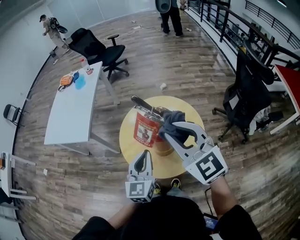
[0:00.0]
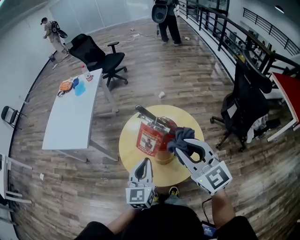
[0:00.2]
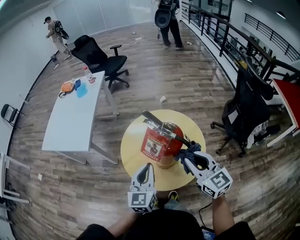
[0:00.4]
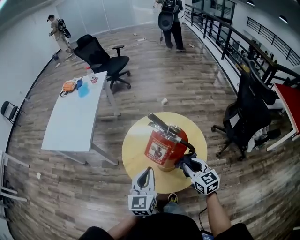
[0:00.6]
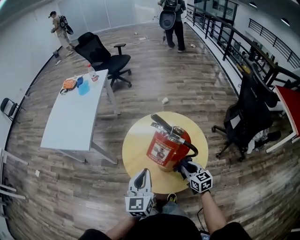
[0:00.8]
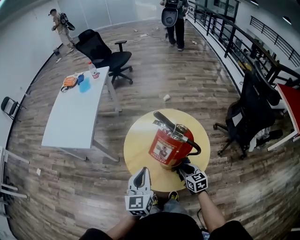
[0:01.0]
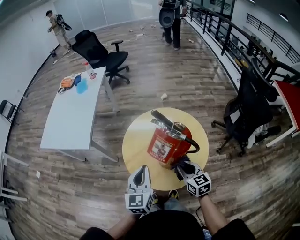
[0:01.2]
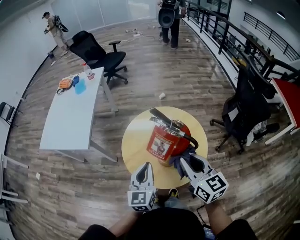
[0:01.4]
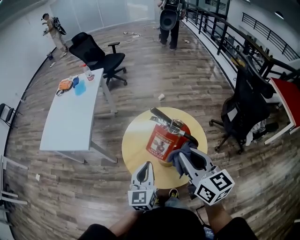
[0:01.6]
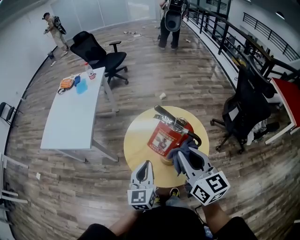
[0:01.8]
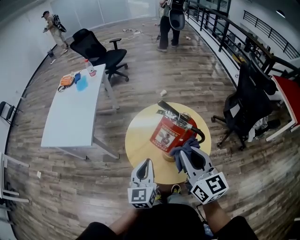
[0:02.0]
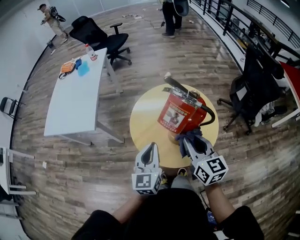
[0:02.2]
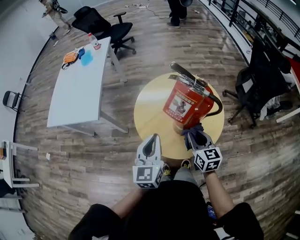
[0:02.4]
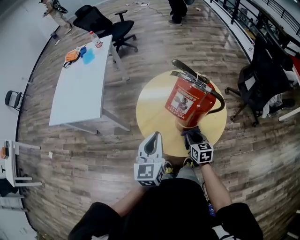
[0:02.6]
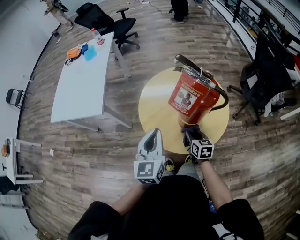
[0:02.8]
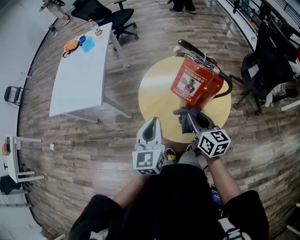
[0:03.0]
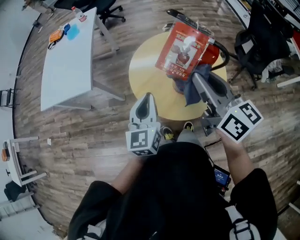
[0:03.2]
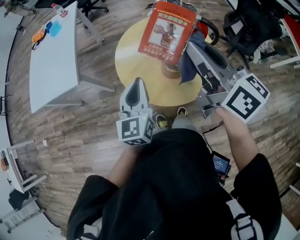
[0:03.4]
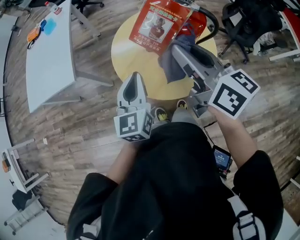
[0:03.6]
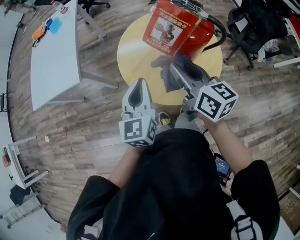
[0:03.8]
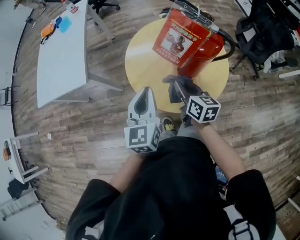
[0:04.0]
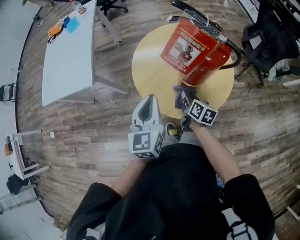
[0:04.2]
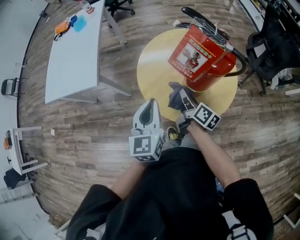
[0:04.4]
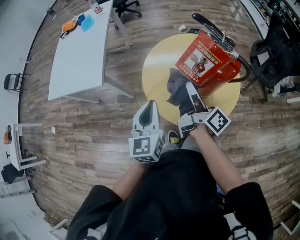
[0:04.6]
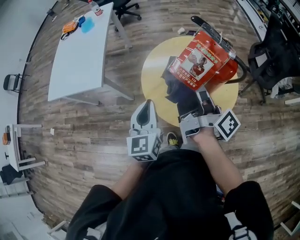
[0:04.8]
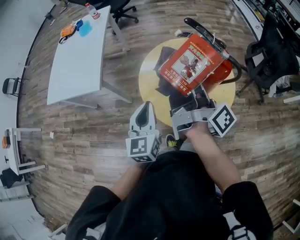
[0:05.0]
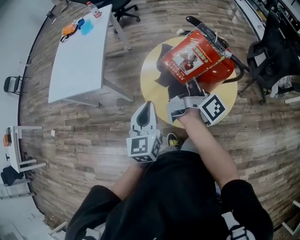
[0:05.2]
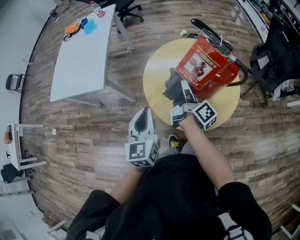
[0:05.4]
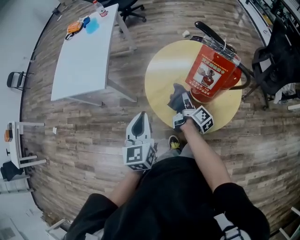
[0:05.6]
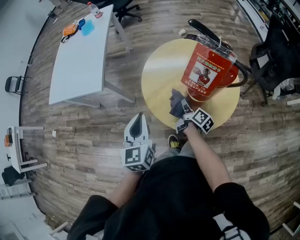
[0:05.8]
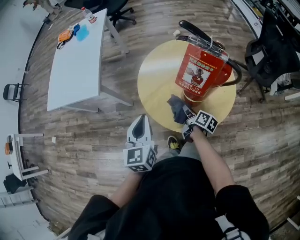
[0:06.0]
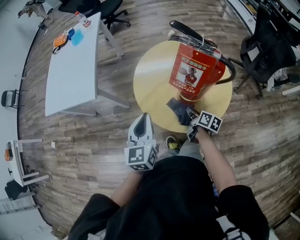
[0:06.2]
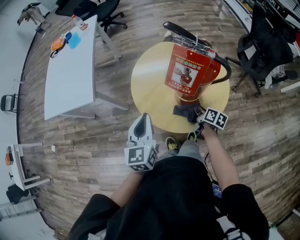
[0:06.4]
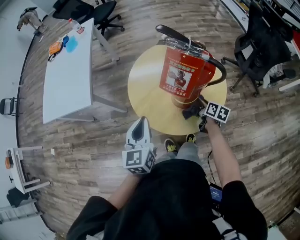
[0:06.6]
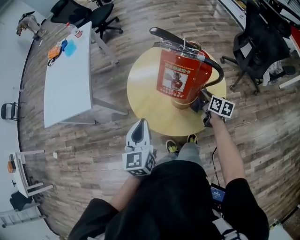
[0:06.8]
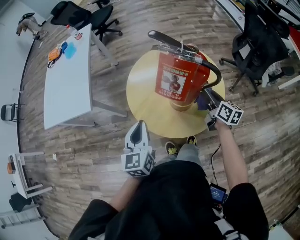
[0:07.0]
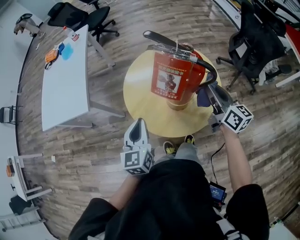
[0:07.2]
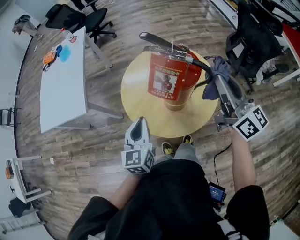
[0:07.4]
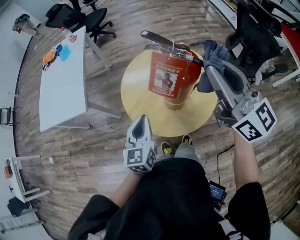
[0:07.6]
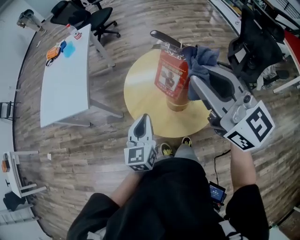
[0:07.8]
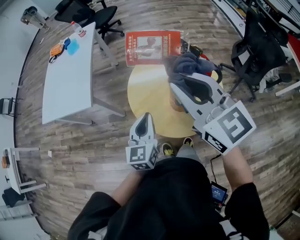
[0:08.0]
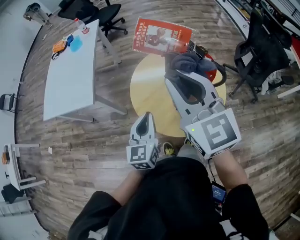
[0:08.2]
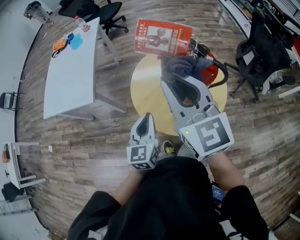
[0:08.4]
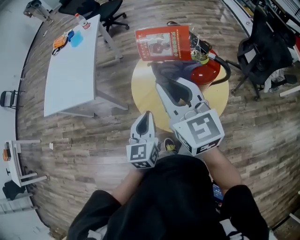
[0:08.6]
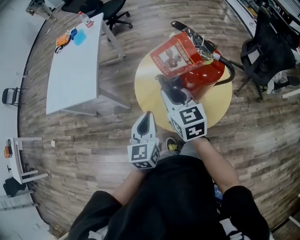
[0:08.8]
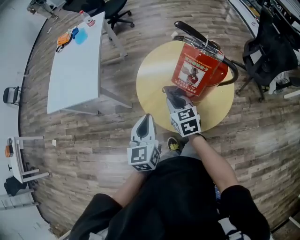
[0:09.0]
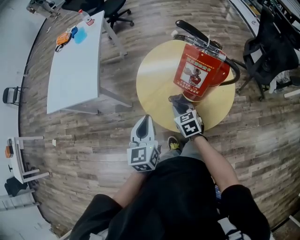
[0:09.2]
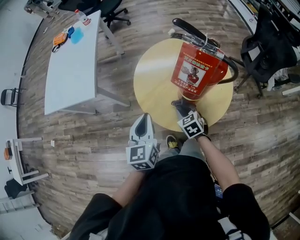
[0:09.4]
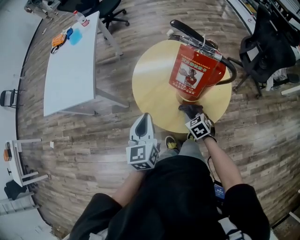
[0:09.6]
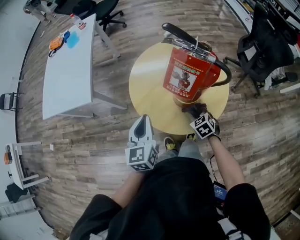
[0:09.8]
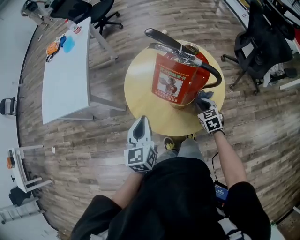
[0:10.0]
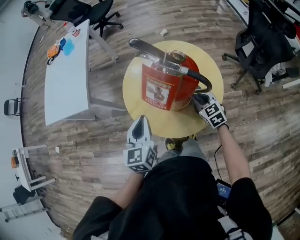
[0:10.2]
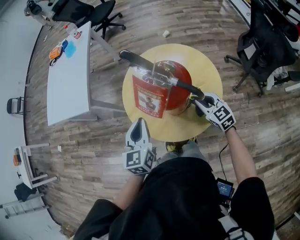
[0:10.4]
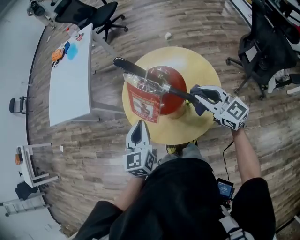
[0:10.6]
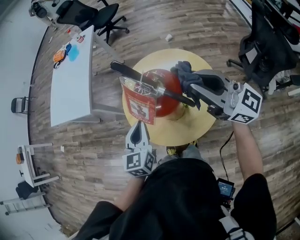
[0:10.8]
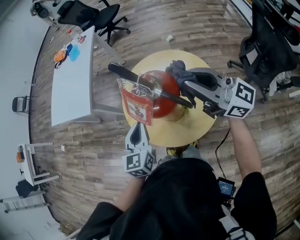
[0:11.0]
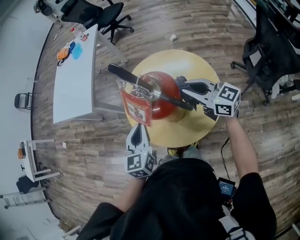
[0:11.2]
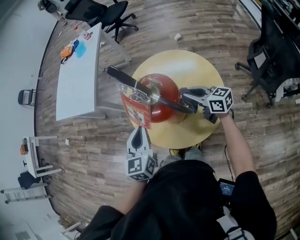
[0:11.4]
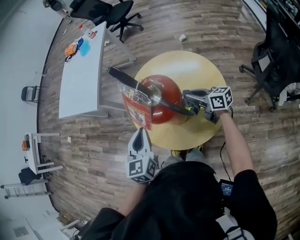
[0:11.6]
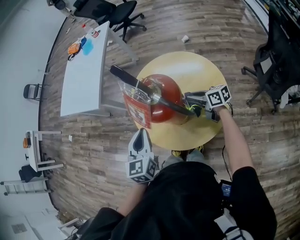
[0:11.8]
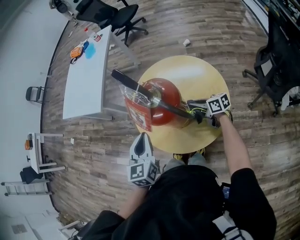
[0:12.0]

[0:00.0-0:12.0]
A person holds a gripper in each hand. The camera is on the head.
0:00.0 to 0:01.6: The right gripper moves about 35 cm downward and comes back, and turns by about 40 degrees.
0:01.6 to 0:03.0: The left gripper is displaced to the left by some 5 cm. The right gripper moves downward, about 20 cm.
0:03.0 to 0:04.4: The right gripper goes up and down, about 35 cm each way, reversing 2 times, and turns by roughly 40 degrees.
0:04.4 to 0:06.0: The right gripper moves some 25 cm upward and comes back. Meanwhile the left gripper heads to the left, covering roughly 5 cm.
0:06.0 to 0:07.6: The right gripper heads upward, covering some 50 cm, and rolls counterclockwise, seen from behind, by approximately 60 degrees, while the left gripper is displaced to the right by approximately 10 cm.
0:07.6 to 0:09.0: The right gripper travels downward and to the left by about 35 cm, and angles its fingers downward, by some 40 degrees. The left gripper goes some 5 cm to the left.
0:09.0 to 0:10.4: The left gripper is displaced to the right by roughly 10 cm; the right gripper goes about 25 cm to the right.
0:10.4 to 0:12.0: The right gripper heads forward, covering roughly 5 cm, goes upward and returns, approximately 30 cm each way, and turns by approximately 50 degrees.

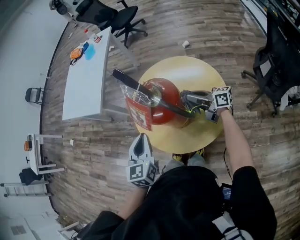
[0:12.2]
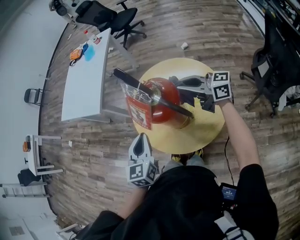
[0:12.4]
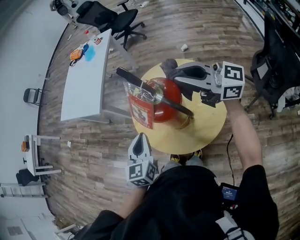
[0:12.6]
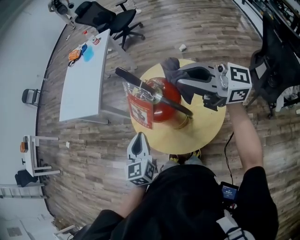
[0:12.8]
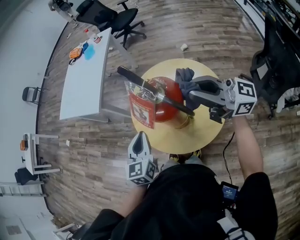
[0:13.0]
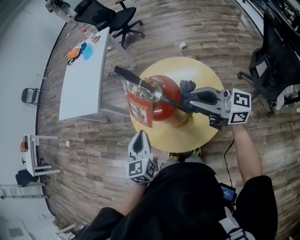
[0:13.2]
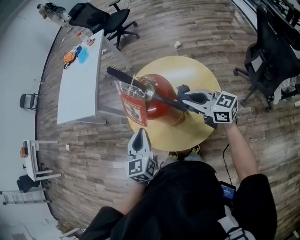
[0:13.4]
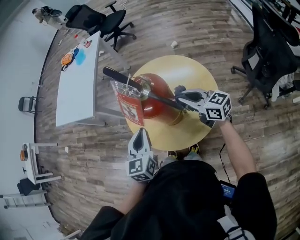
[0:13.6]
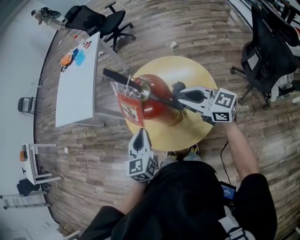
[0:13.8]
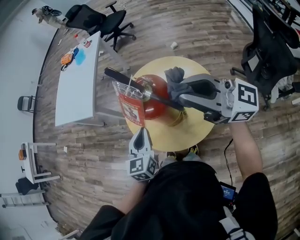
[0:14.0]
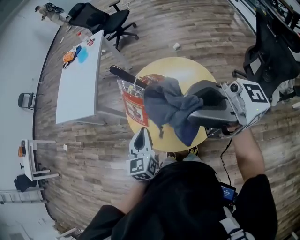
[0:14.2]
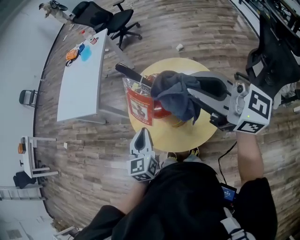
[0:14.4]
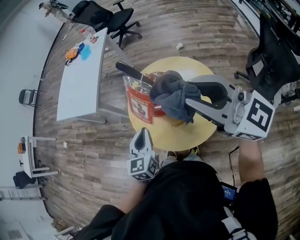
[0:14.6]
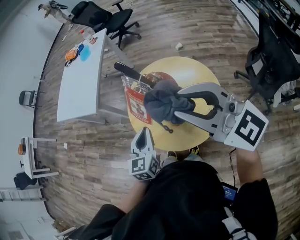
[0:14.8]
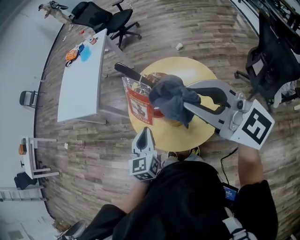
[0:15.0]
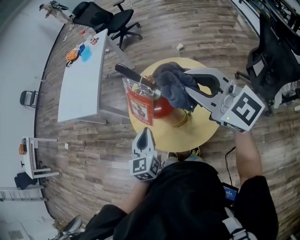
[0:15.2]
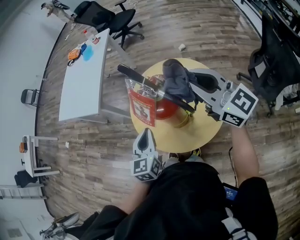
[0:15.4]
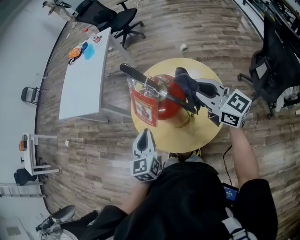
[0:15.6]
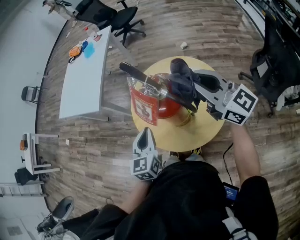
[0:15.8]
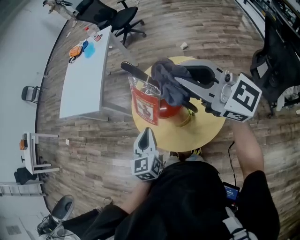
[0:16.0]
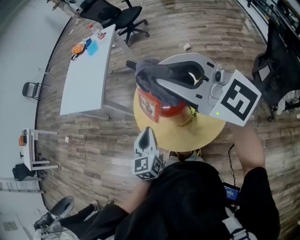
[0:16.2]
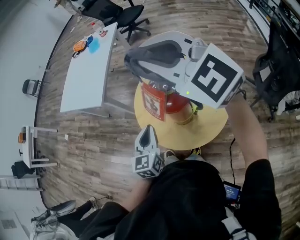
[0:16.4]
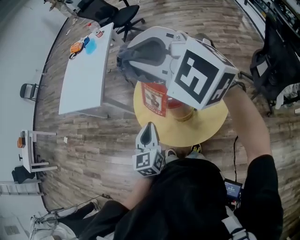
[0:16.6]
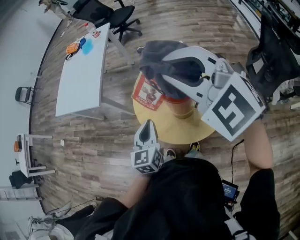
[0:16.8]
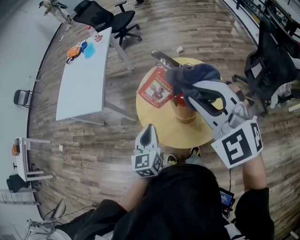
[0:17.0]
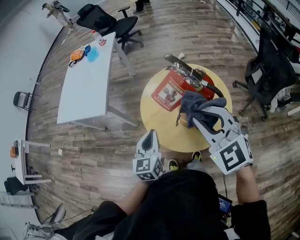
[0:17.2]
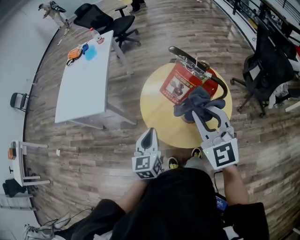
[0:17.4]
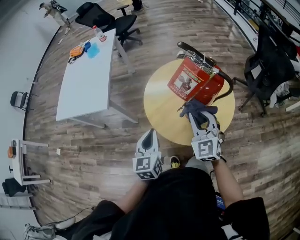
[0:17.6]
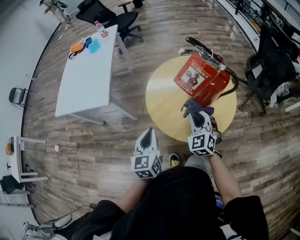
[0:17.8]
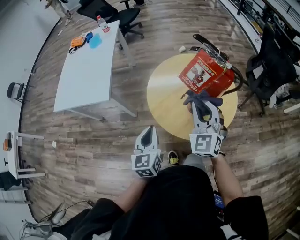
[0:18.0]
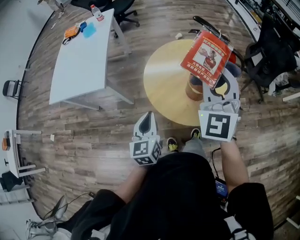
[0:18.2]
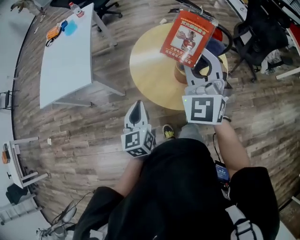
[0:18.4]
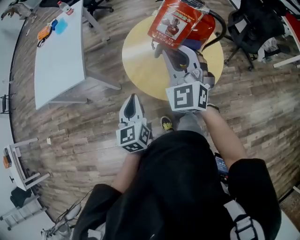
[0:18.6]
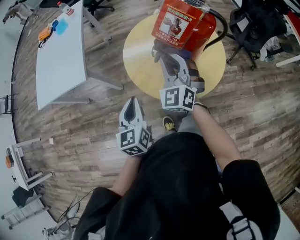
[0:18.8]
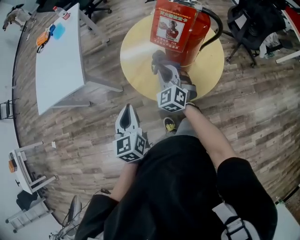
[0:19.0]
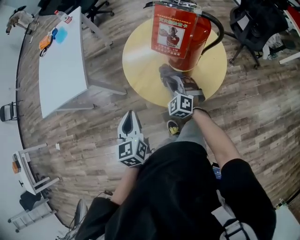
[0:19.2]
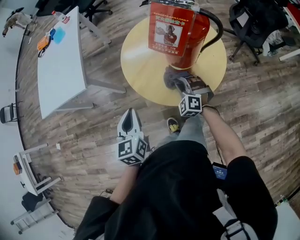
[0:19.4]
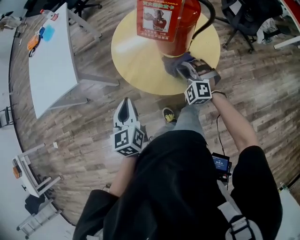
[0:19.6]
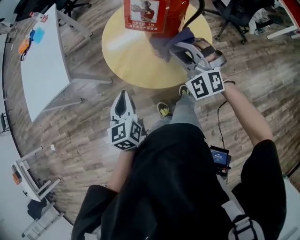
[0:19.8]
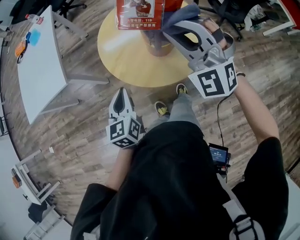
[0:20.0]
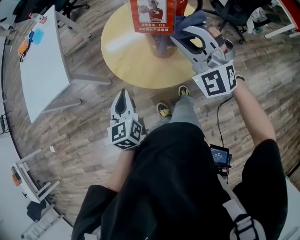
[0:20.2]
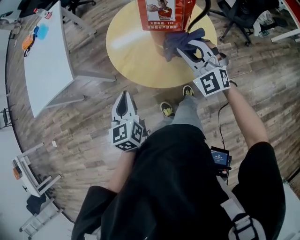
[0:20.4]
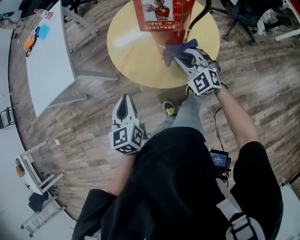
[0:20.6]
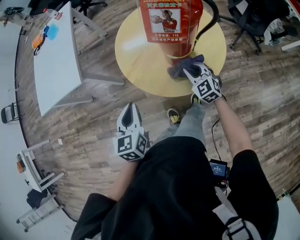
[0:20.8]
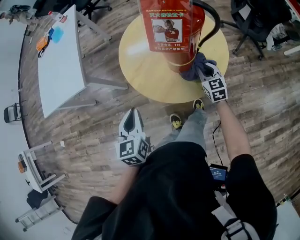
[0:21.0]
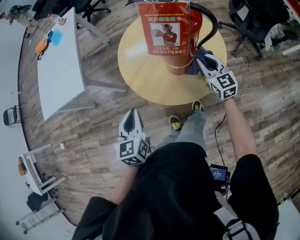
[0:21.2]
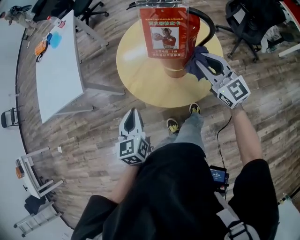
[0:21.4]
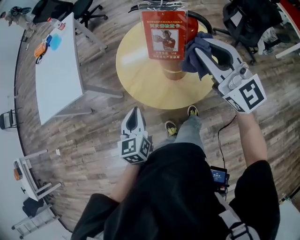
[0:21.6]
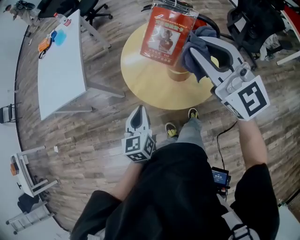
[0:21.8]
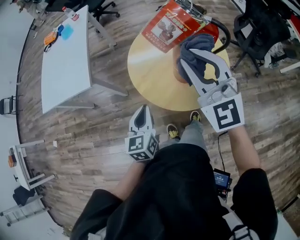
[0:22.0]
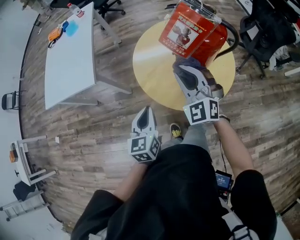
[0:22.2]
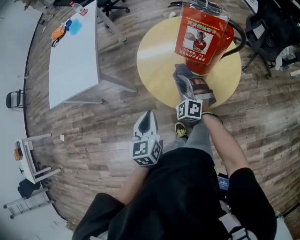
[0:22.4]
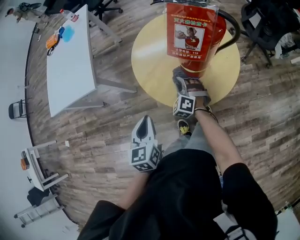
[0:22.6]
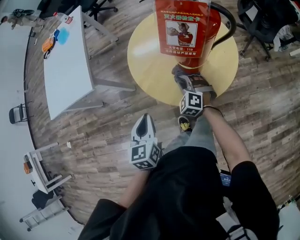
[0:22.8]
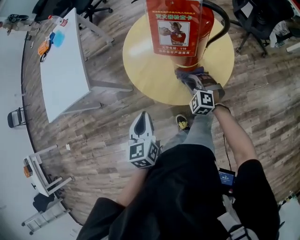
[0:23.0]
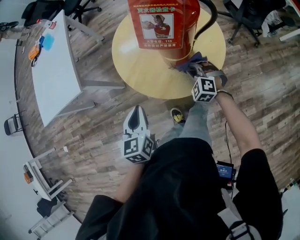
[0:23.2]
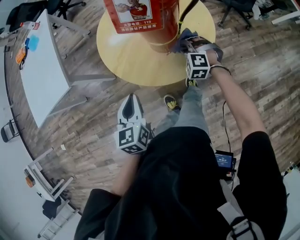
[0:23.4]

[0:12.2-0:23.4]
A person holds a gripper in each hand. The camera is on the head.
0:12.2 to 0:13.8: The right gripper goes up and down, approximately 30 cm each way, reversing 2 times, and changes its angle by some 40 degrees.
0:13.8 to 0:15.4: The right gripper goes roughly 15 cm upward.
0:15.4 to 0:17.0: The left gripper is displaced to the left by roughly 5 cm; the right gripper swings up and down, approximately 20 cm each way, with 2 reversals, and twists some 40 degrees counterclockwise, seen from behind.
0:17.0 to 0:18.6: The right gripper swings up and down, roughly 25 cm each way, with 2 reversals, and turns by roughly 30 degrees, while the left gripper goes roughly 10 cm to the left.
0:18.6 to 0:20.2: The right gripper shifts roughly 10 cm to the right, reaches some 30 cm downward, then returns, and changes its angle by some 20 degrees.
0:20.2 to 0:21.8: The right gripper travels downward and back again, roughly 30 cm each way, and rotates roughly 40 degrees.
0:21.8 to 0:23.4: The right gripper heads downward, covering about 40 cm, and points its fingers approximately 60 degrees further downward.
